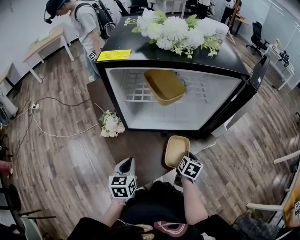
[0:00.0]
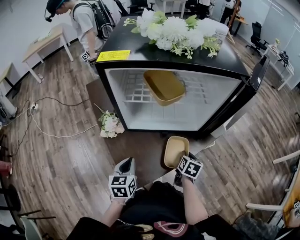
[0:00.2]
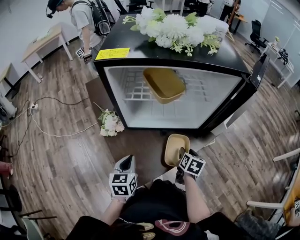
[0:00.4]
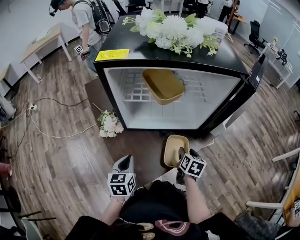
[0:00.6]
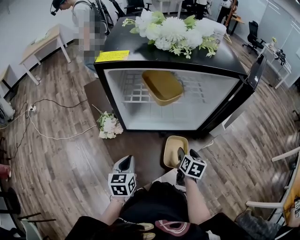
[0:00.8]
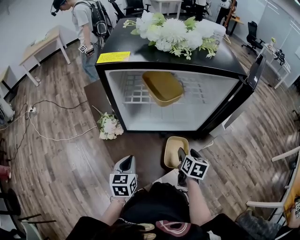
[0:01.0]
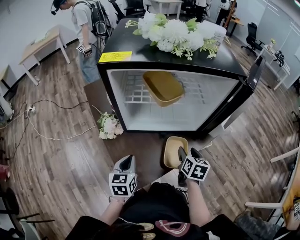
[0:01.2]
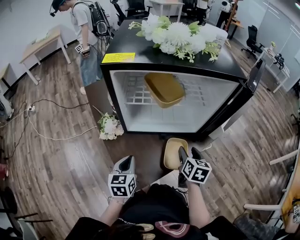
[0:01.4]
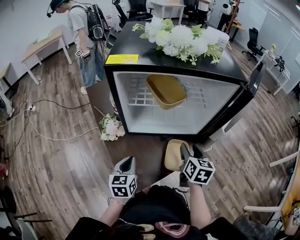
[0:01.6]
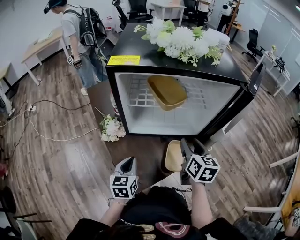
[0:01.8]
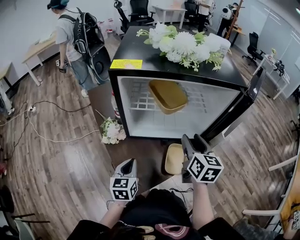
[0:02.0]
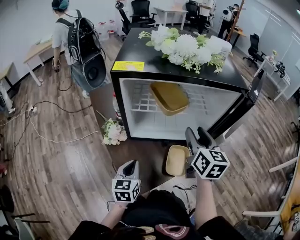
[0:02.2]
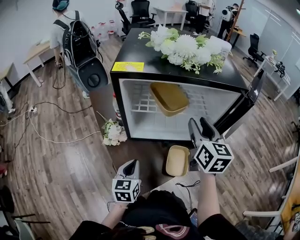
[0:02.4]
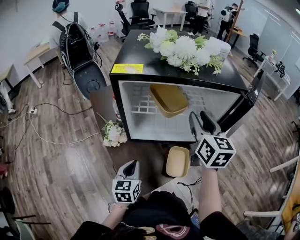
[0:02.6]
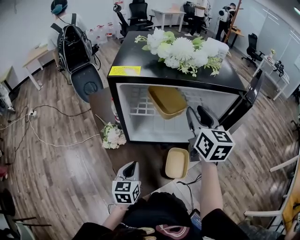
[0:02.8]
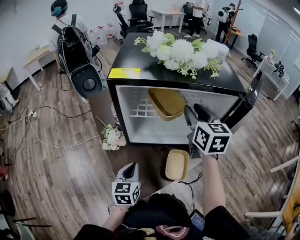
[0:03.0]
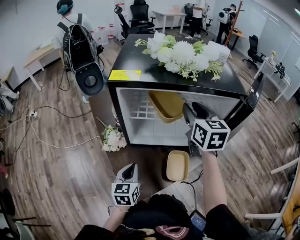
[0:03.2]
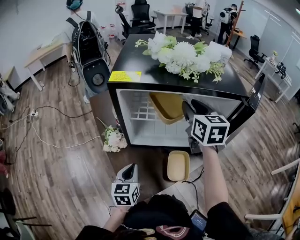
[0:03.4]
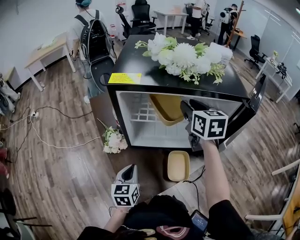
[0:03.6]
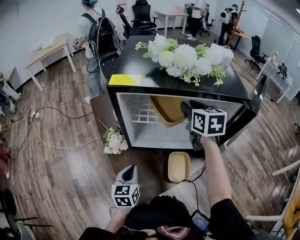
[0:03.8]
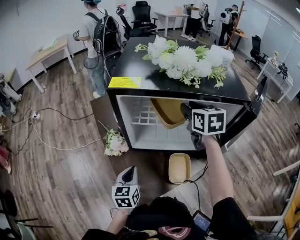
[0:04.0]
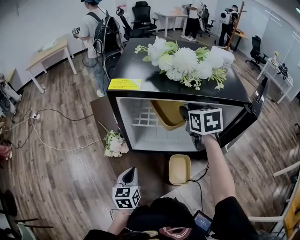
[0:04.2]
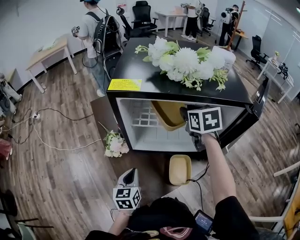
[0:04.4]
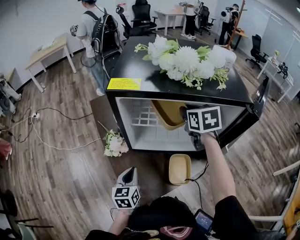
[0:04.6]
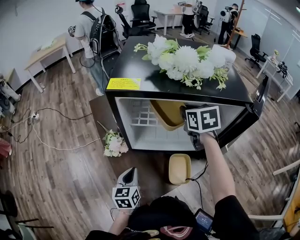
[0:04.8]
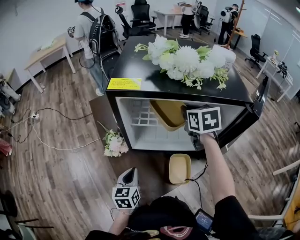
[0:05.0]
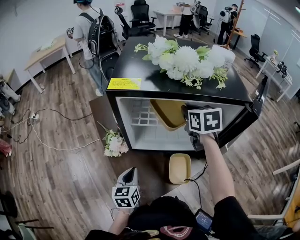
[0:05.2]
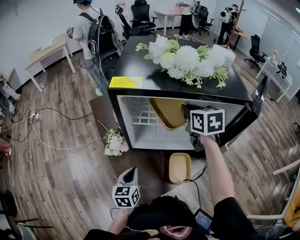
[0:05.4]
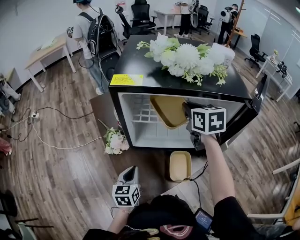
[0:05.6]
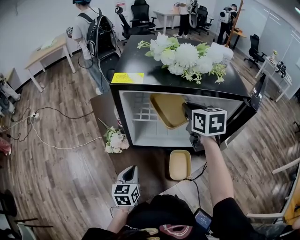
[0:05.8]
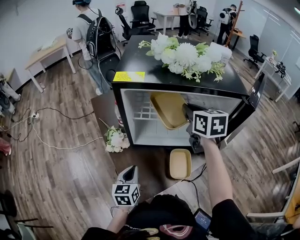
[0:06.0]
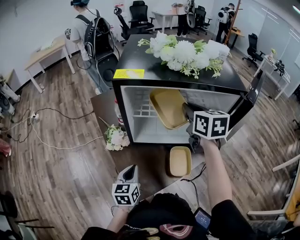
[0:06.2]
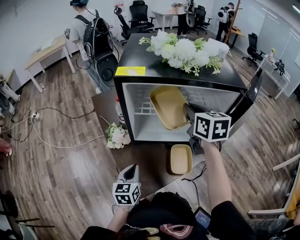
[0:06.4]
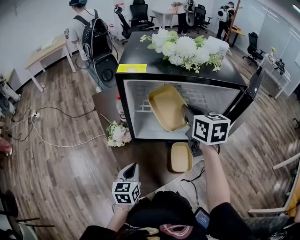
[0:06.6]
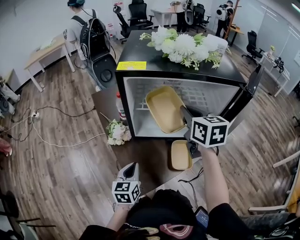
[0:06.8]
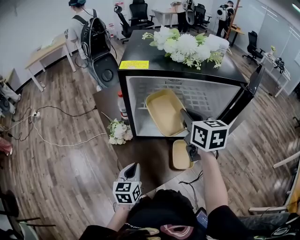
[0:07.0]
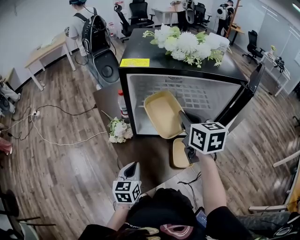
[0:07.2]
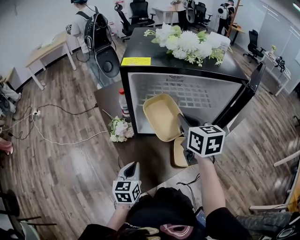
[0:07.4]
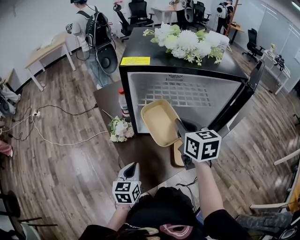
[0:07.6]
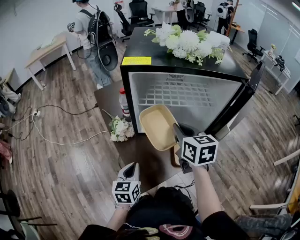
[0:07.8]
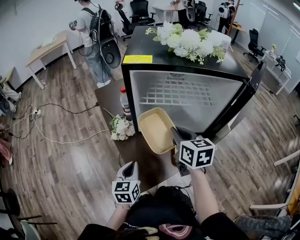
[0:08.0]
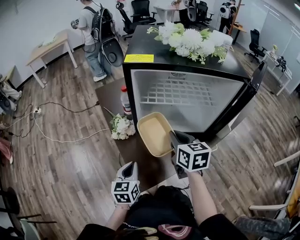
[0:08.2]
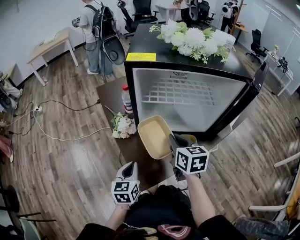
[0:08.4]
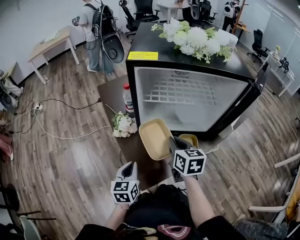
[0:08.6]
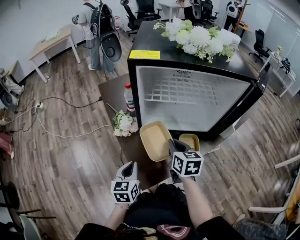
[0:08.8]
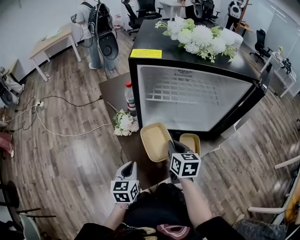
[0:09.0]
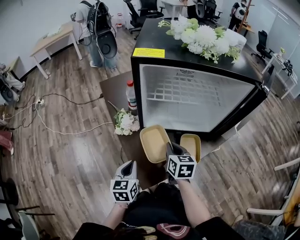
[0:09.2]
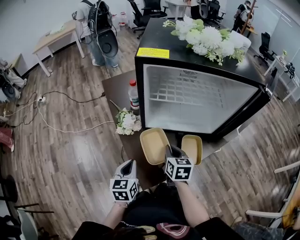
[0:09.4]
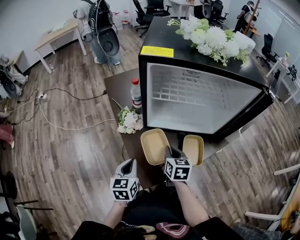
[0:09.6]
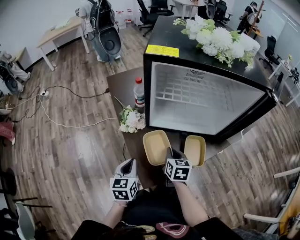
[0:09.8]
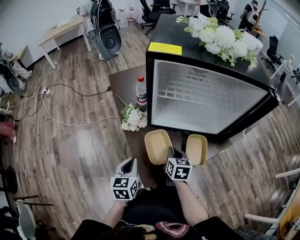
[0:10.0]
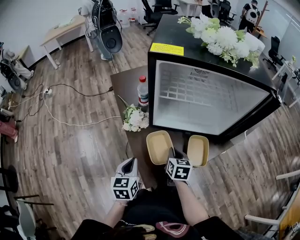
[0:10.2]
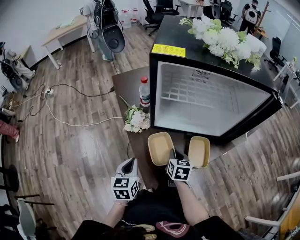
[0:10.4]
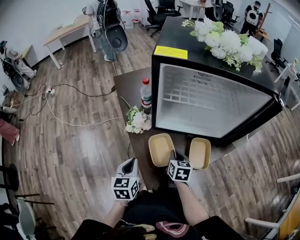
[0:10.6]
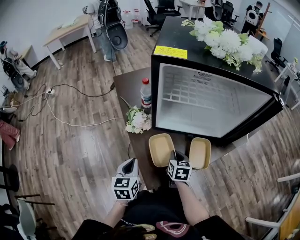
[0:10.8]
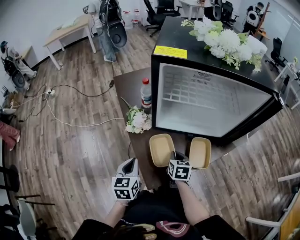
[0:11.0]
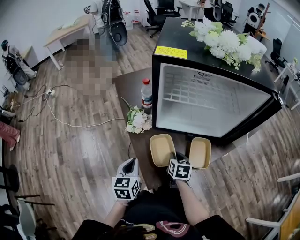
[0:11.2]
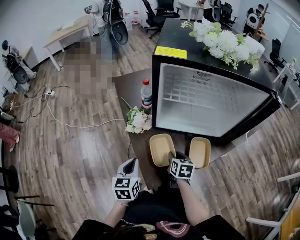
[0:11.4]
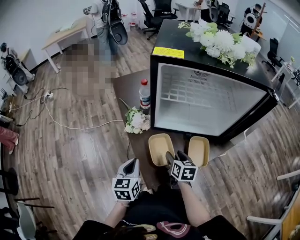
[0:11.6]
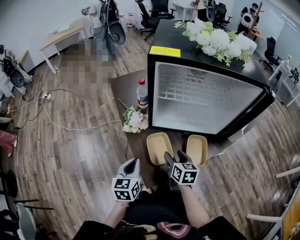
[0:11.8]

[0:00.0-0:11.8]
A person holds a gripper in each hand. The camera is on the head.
0.0 to 1.4 s: The right gripper heads upward, covering about 10 cm, and opens up.
1.4 to 3.0 s: The right gripper goes approximately 25 cm upward and forward, turns by about 30 degrees, and closes up.
3.0 to 4.4 s: The right gripper goes about 5 cm forward, and changes its angle by roughly 20 degrees.
4.4 to 6.0 s: The right gripper closes up.
6.0 to 7.4 s: The right gripper heads backward, covering some 10 cm.
7.4 to 8.8 s: The right gripper goes approximately 15 cm downward and backward.
8.8 to 10.4 s: The right gripper is displaced downward by roughly 10 cm.
10.4 to 11.8 s: The right gripper opens up.

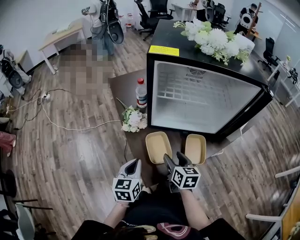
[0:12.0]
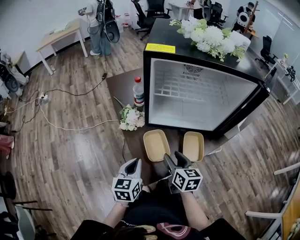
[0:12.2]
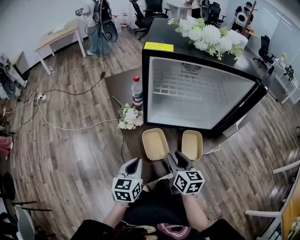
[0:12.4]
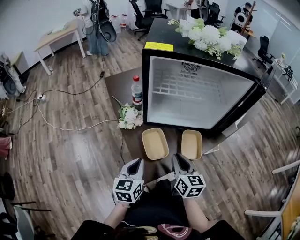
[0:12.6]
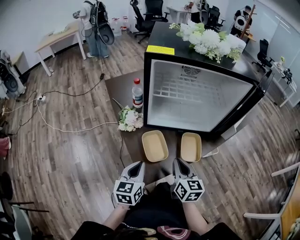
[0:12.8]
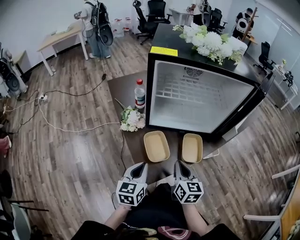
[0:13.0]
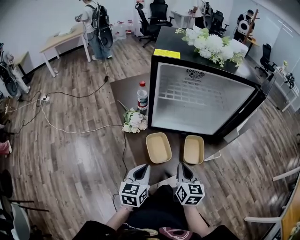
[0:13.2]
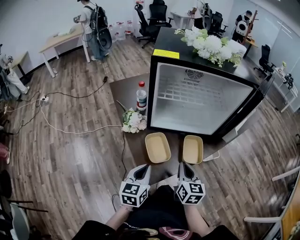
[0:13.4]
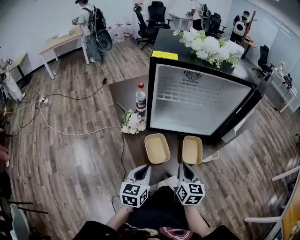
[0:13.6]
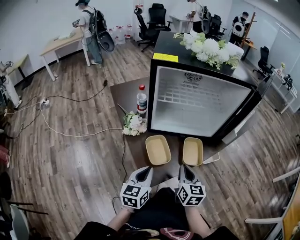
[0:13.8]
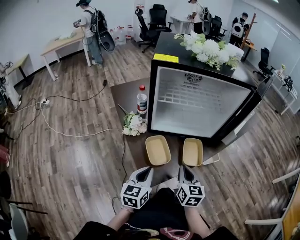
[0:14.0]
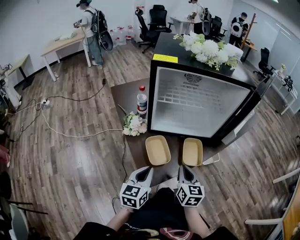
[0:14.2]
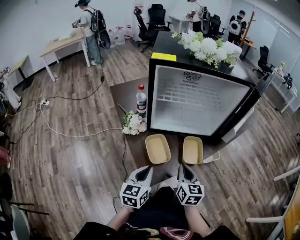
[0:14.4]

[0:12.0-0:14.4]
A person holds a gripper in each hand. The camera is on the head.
12.0 to 13.2 s: The right gripper shifts roughly 5 cm backward, and closes up. Meanwhile the left gripper changes place by about 5 cm.
13.2 to 14.4 s: The grippers move only a little.

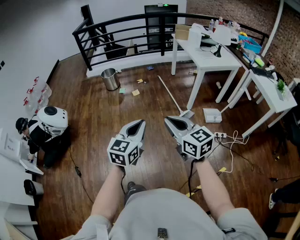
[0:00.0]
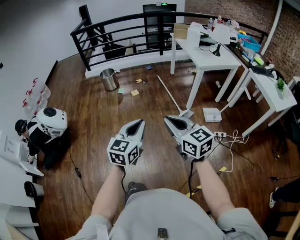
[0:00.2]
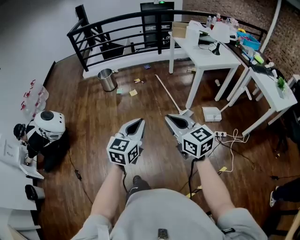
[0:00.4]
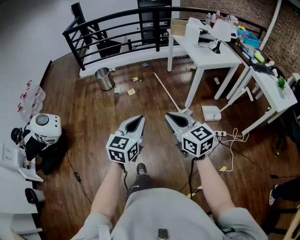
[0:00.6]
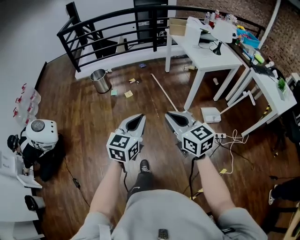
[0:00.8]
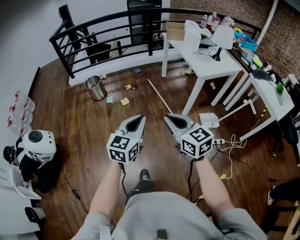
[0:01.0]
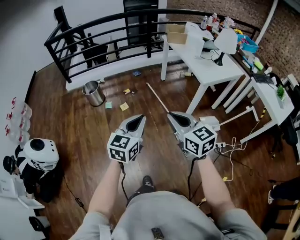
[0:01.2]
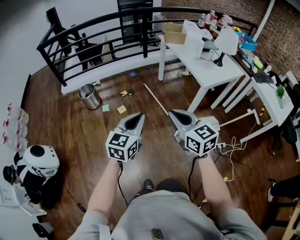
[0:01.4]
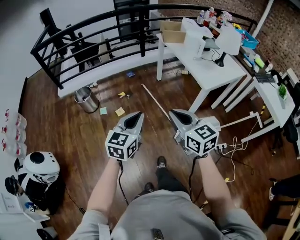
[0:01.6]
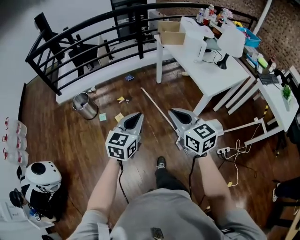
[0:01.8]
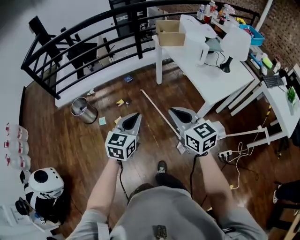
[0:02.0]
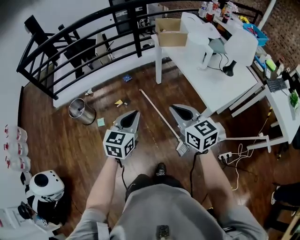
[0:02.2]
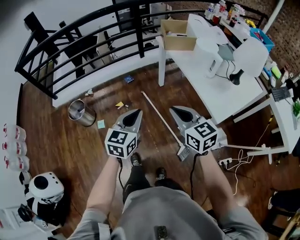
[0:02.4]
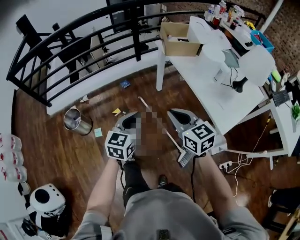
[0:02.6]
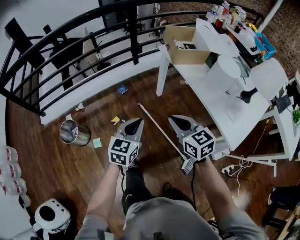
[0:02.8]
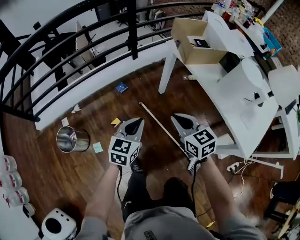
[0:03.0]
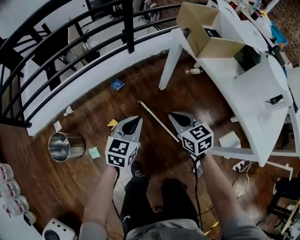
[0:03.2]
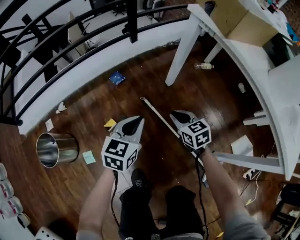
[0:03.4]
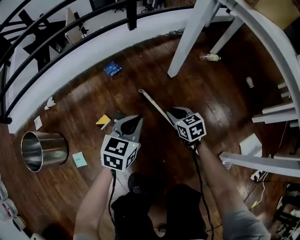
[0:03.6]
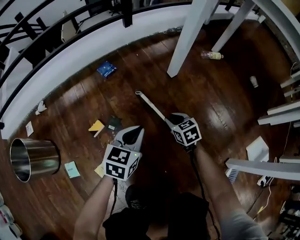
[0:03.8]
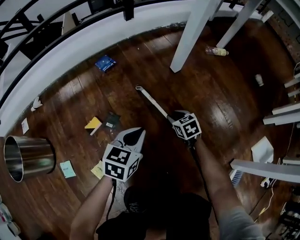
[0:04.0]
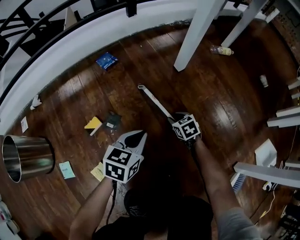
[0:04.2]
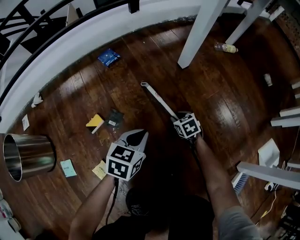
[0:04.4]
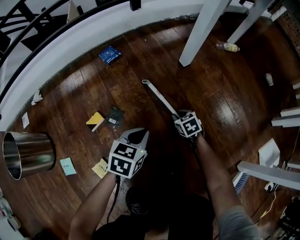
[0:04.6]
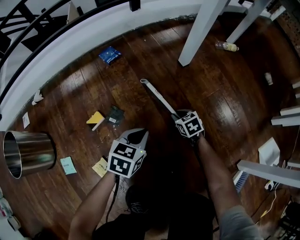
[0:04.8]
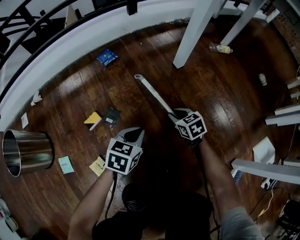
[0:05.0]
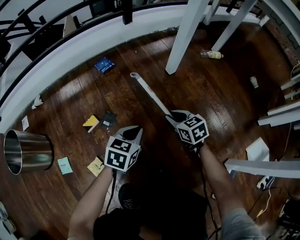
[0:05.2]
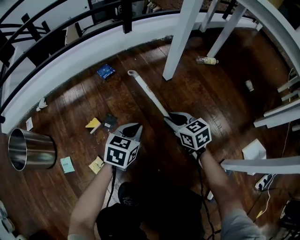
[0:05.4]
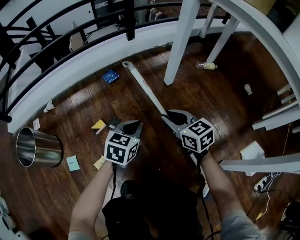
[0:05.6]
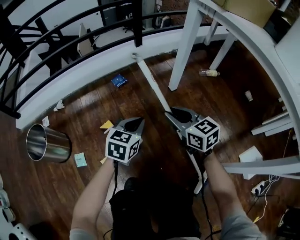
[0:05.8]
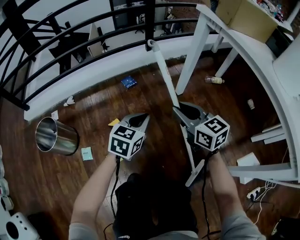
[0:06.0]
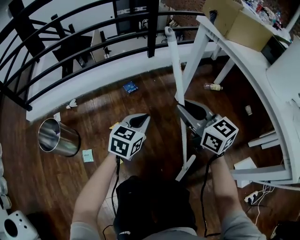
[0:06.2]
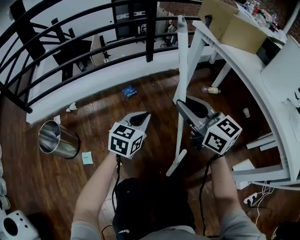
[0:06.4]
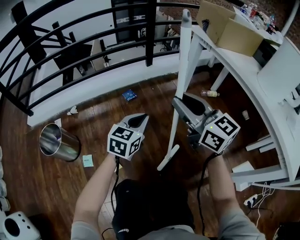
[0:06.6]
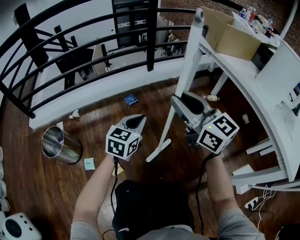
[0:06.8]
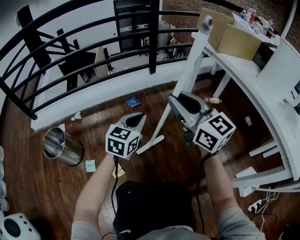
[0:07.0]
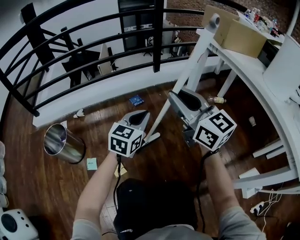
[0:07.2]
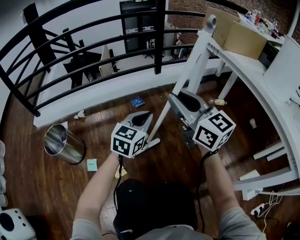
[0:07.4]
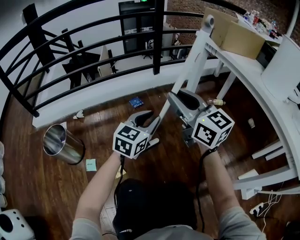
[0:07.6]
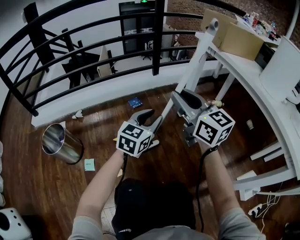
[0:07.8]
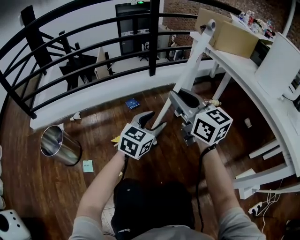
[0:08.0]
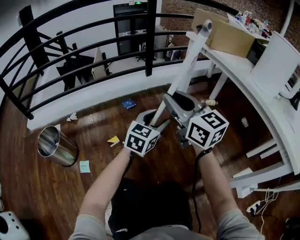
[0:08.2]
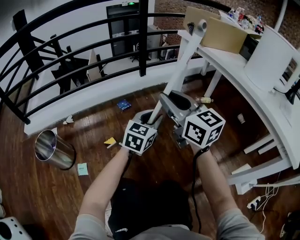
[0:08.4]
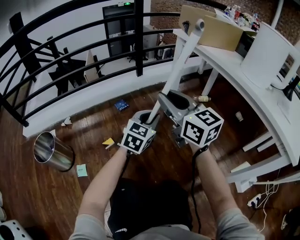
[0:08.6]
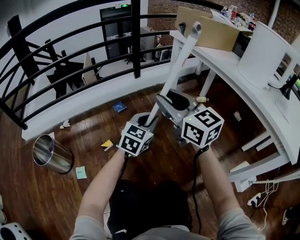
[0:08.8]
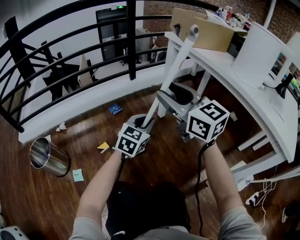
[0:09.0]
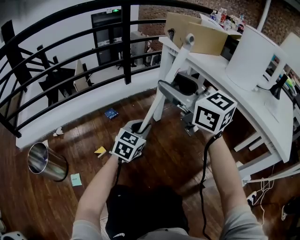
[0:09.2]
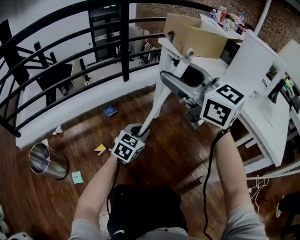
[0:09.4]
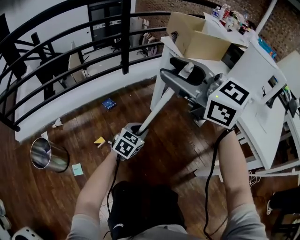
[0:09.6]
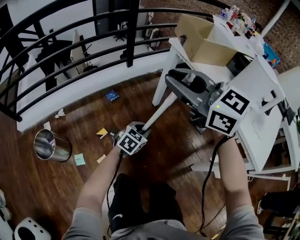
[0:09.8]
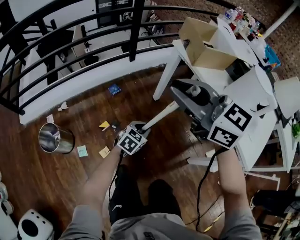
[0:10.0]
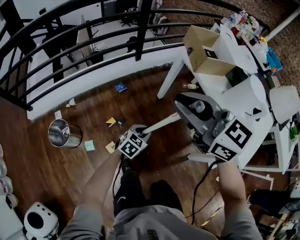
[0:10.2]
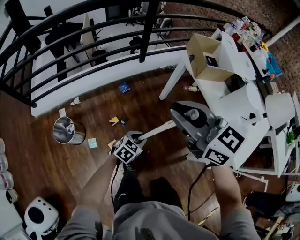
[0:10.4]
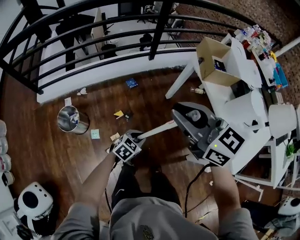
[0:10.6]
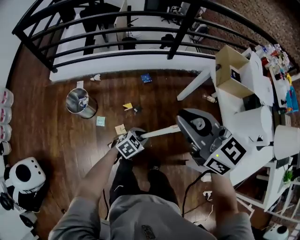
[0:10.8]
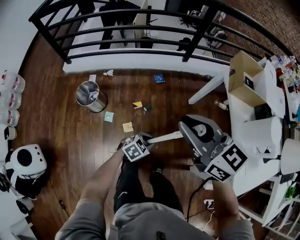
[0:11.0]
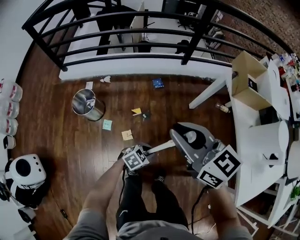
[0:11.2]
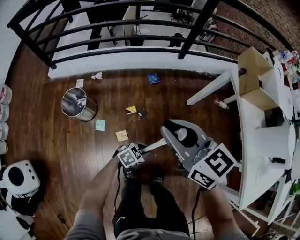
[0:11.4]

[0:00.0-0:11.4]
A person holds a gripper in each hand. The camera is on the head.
0.0 to 1.4 s: The grippers both shift forward by about 40 cm.
1.4 to 2.8 s: Both grippers are carried forward, some 50 cm.
2.8 to 4.2 s: The grippers both shift downward by roughly 80 cm. The right gripper angles its fingers downward, by roughly 30 degrees, and opens its fingers; the left gripper turns by approximately 20 degrees.
4.2 to 5.6 s: The left gripper goes about 15 cm upward. The right gripper is displaced upward by approximately 35 cm, and angles its fingers upward, by roughly 30 degrees.
5.6 to 7.2 s: The left gripper shifts roughly 25 cm upward, and changes its angle by approximately 20 degrees. Meanwhile the right gripper is displaced upward by roughly 35 cm, and tips its fingers upward by roughly 30 degrees.
7.2 to 8.6 s: The left gripper travels to the right by roughly 10 cm, and opens and closes again.
8.6 to 10.0 s: The left gripper travels backward by approximately 5 cm, and turns by roughly 30 degrees, while the right gripper moves upward, approximately 25 cm, and opens, then closes once more.
10.0 to 11.4 s: The right gripper moves roughly 15 cm, while the left gripper shifts by approximately 15 cm.
